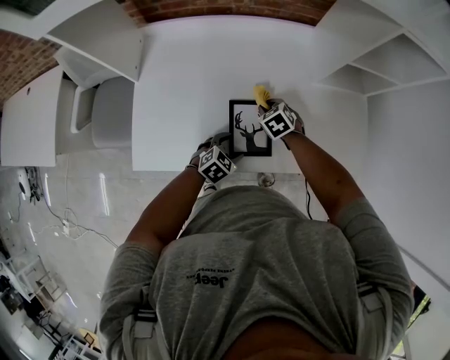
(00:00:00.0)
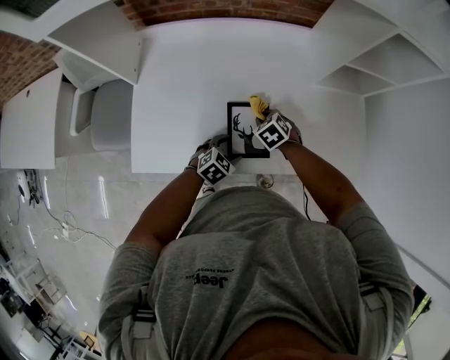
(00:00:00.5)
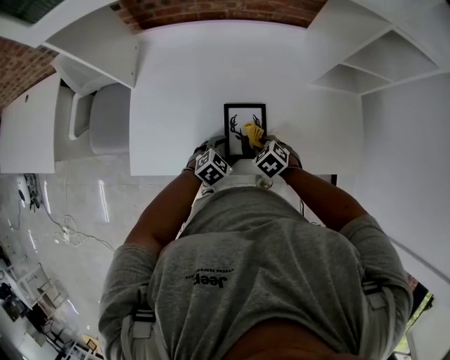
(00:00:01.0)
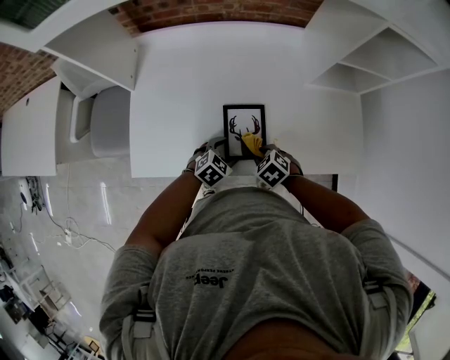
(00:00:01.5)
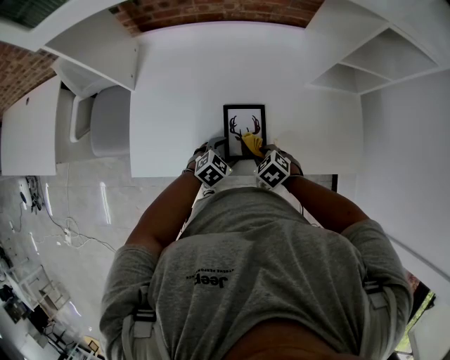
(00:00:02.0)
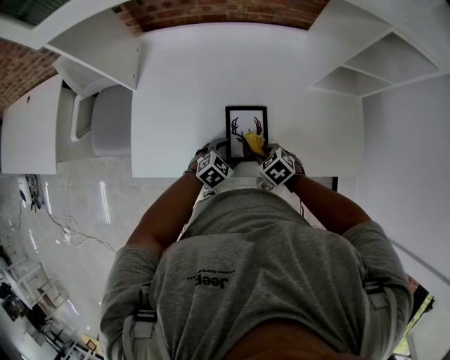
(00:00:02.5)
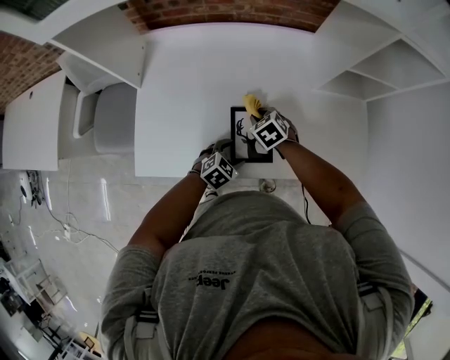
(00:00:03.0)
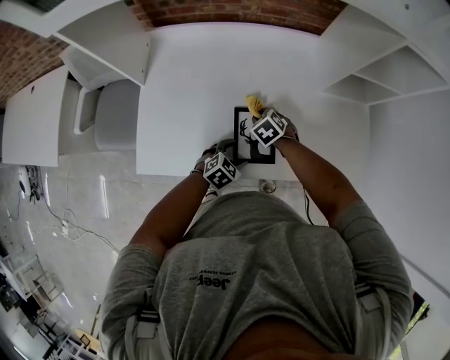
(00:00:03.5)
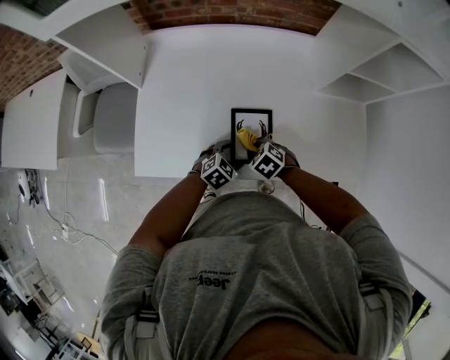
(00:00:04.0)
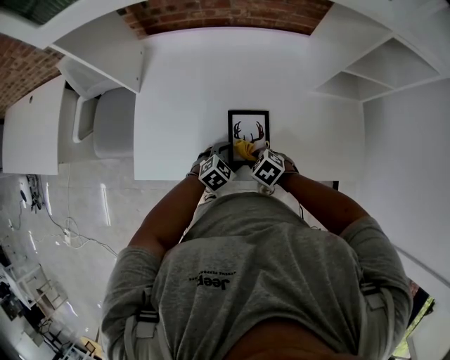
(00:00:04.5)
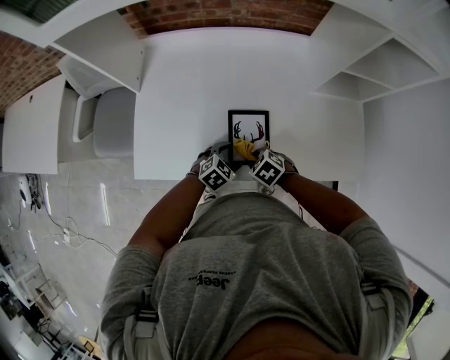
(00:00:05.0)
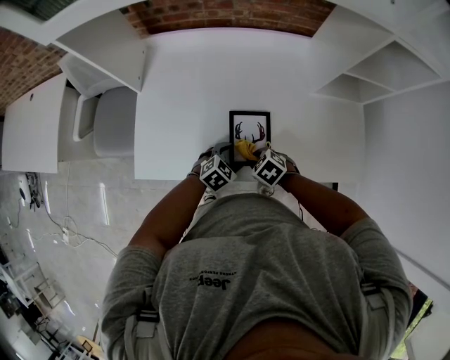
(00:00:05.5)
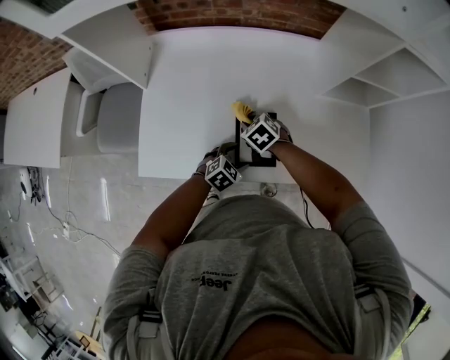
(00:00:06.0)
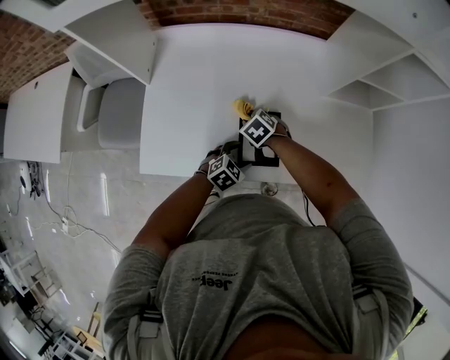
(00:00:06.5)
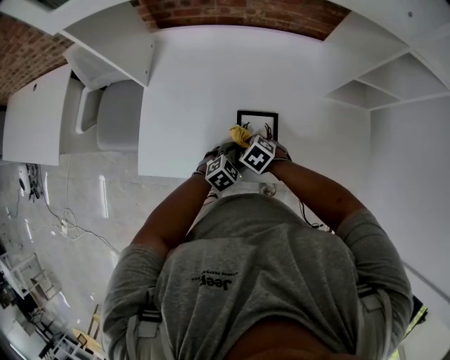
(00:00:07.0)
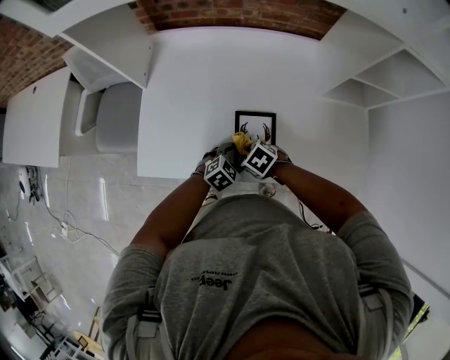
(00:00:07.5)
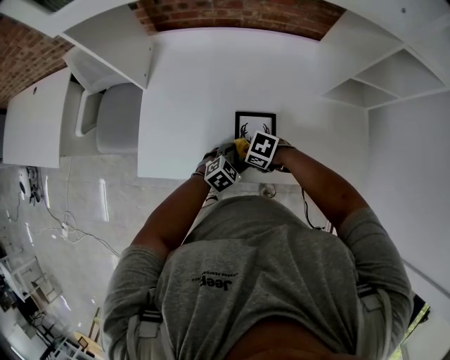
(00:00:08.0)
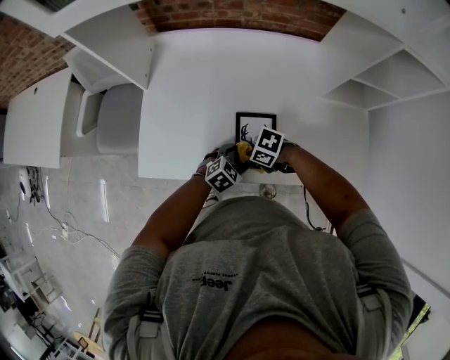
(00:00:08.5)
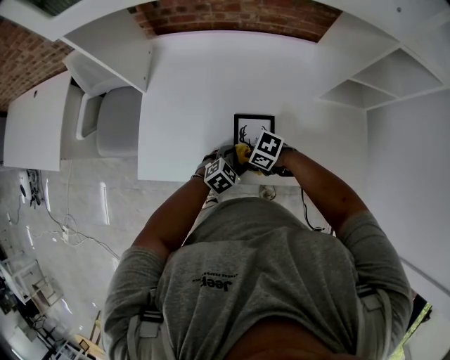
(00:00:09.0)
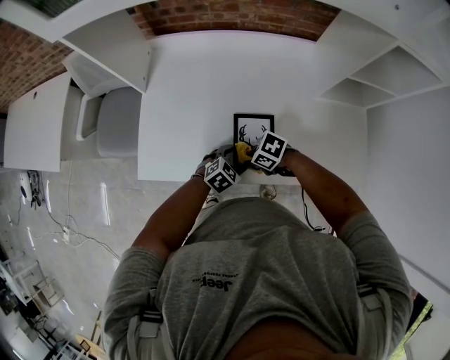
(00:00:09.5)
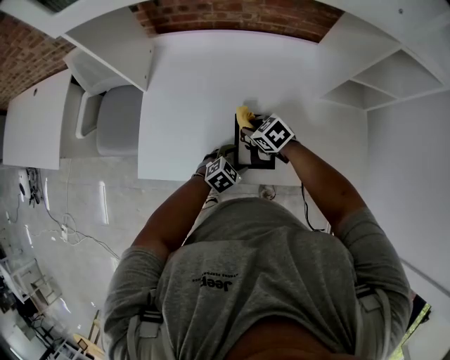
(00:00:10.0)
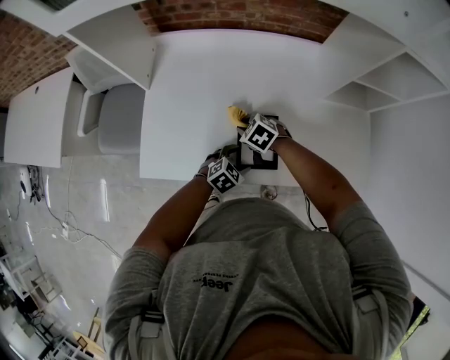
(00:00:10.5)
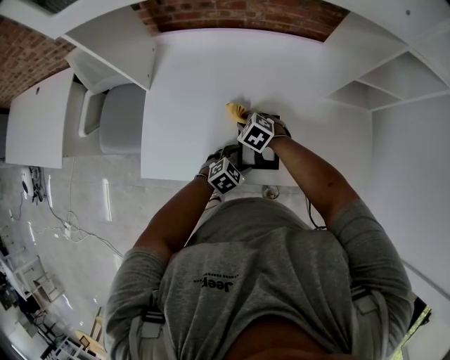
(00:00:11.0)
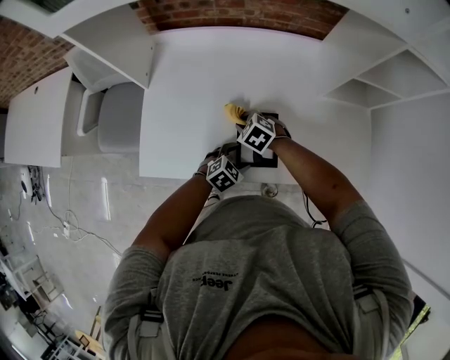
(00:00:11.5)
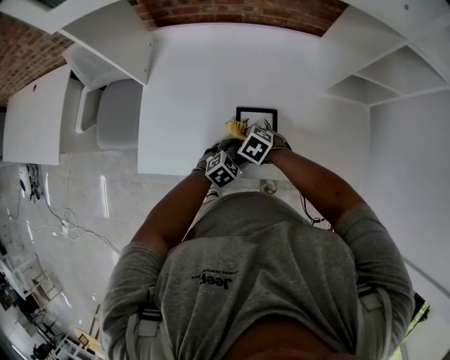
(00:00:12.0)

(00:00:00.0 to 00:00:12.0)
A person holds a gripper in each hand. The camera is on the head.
00:00:00.0 - 00:00:02.0: The right gripper moves backward, roughly 15 cm.
00:00:02.0 - 00:00:04.0: The right gripper travels forward and back again, roughly 15 cm each way.
00:00:04.0 - 00:00:06.0: The right gripper shifts by approximately 10 cm.
00:00:06.0 - 00:00:08.0: The right gripper changes place by about 15 cm, and changes its angle by roughly 40 degrees.
00:00:08.0 - 00:00:10.0: The right gripper ends up about 10 cm from where it was, and swivels roughly 30 degrees.
00:00:10.0 - 00:00:12.0: The right gripper ends up approximately 5 cm from where it was.

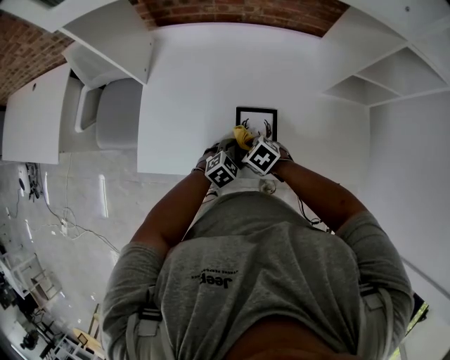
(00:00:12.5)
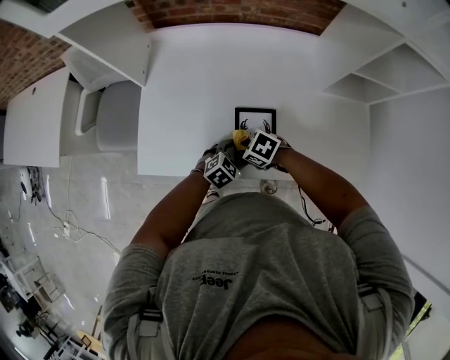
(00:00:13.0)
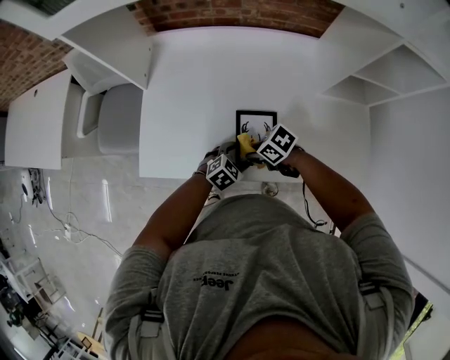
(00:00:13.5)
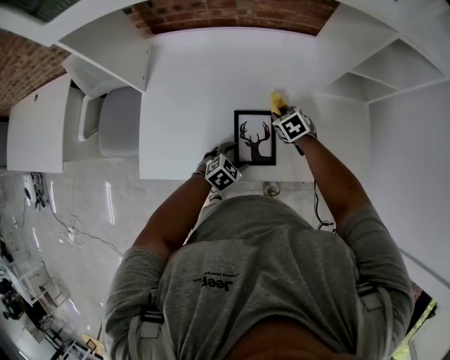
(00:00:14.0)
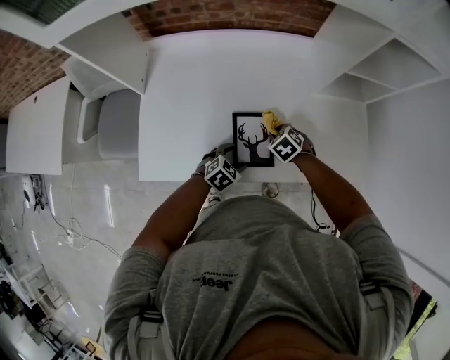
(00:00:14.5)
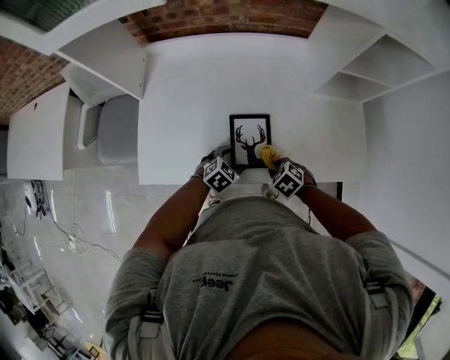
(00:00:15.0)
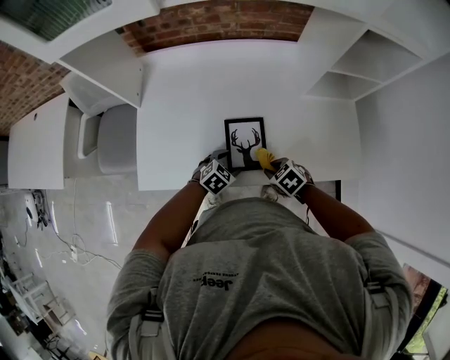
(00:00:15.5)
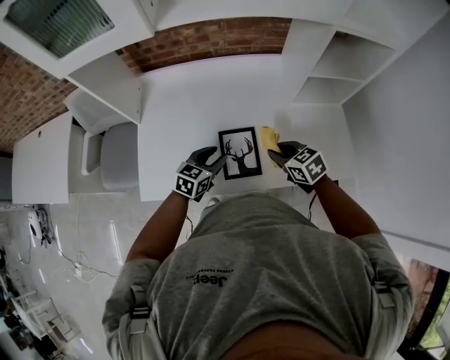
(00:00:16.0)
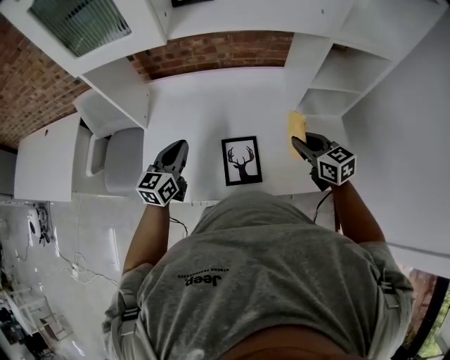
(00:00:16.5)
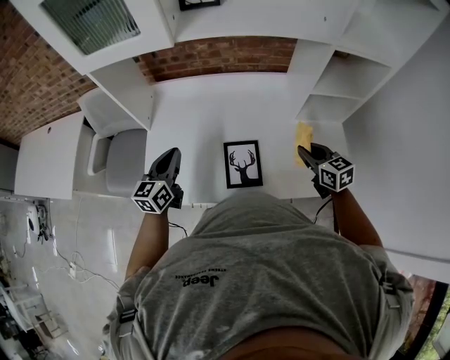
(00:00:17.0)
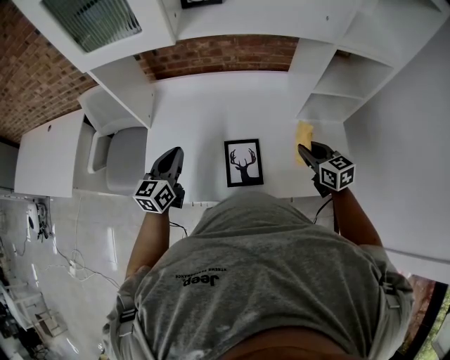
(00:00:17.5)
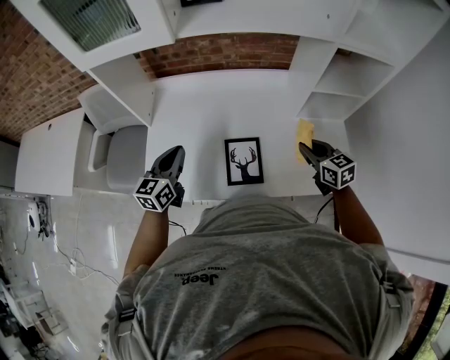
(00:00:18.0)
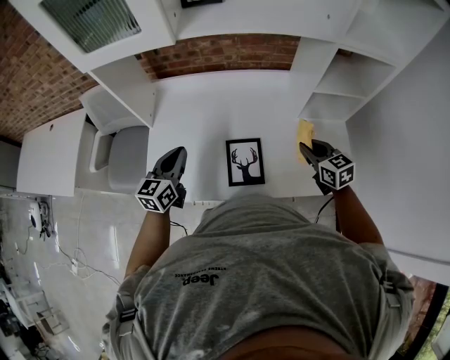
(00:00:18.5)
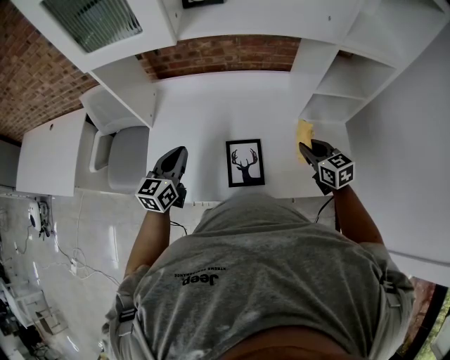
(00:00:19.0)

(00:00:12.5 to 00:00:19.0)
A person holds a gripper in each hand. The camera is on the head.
00:00:12.5 - 00:00:14.5: The right gripper moves about 15 cm.
00:00:14.5 - 00:00:17.0: The left gripper goes some 30 cm upward and to the left, tips its fingers upward by approximately 40 degrees, and closes its fingers. Meanwhile the right gripper heads upward and to the right, covering some 25 cm, and tilts its fingers about 40 degrees upward.
00:00:17.0 - 00:00:19.0: There are only small adjustments of the grippers.

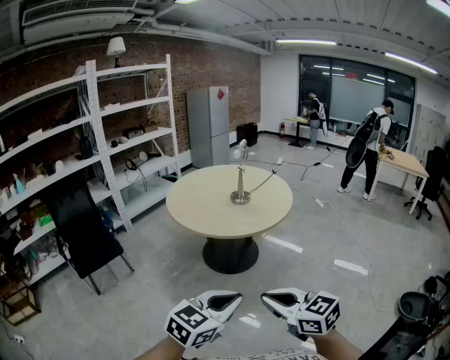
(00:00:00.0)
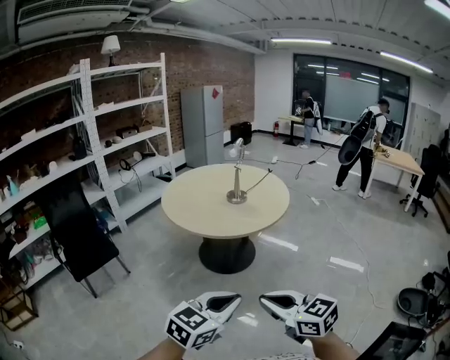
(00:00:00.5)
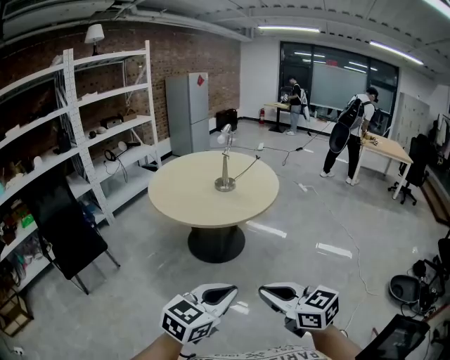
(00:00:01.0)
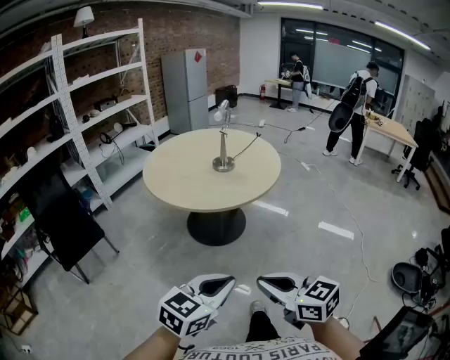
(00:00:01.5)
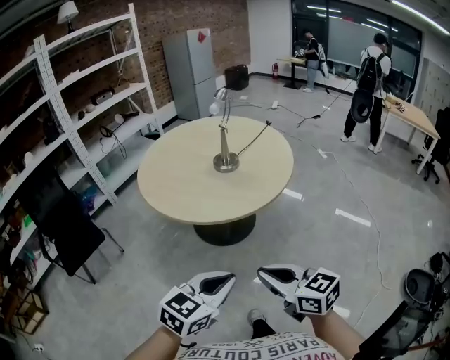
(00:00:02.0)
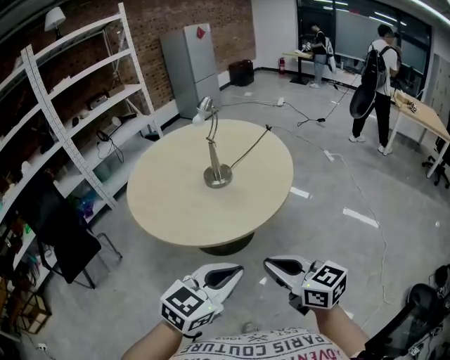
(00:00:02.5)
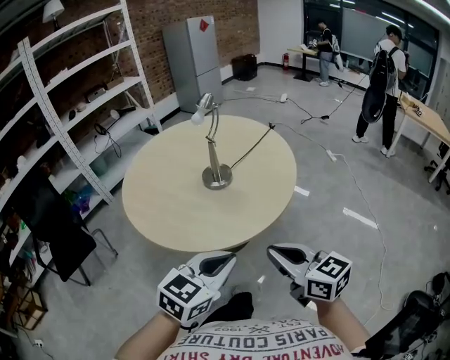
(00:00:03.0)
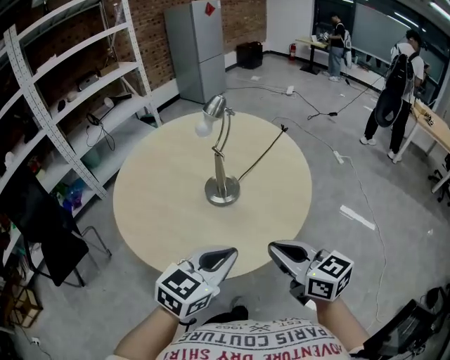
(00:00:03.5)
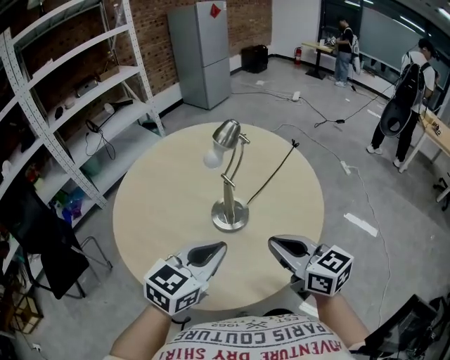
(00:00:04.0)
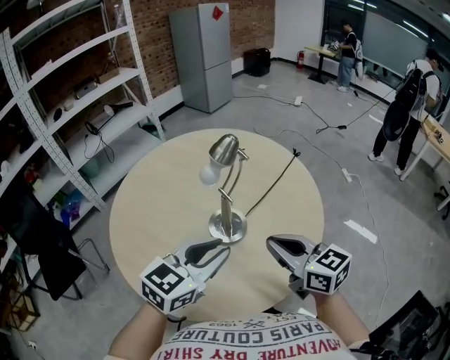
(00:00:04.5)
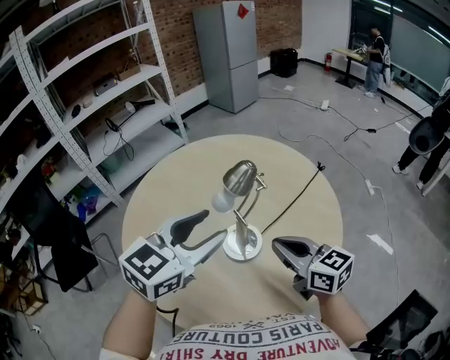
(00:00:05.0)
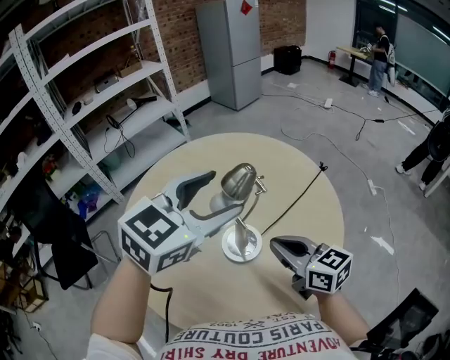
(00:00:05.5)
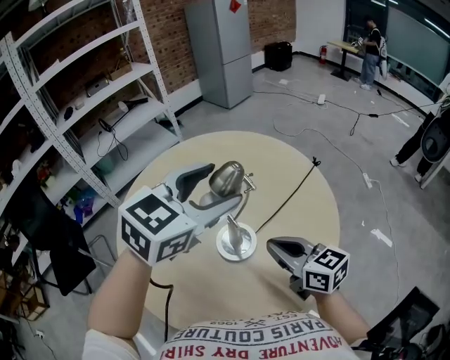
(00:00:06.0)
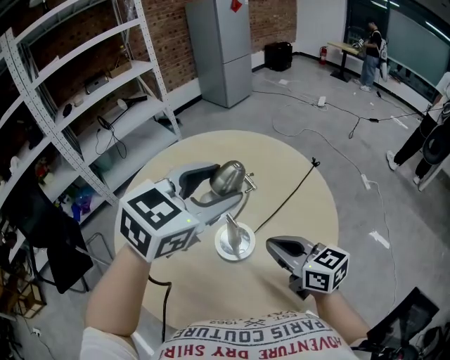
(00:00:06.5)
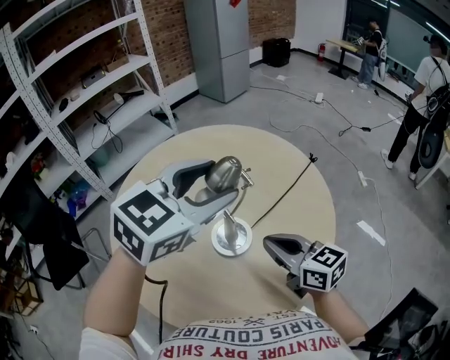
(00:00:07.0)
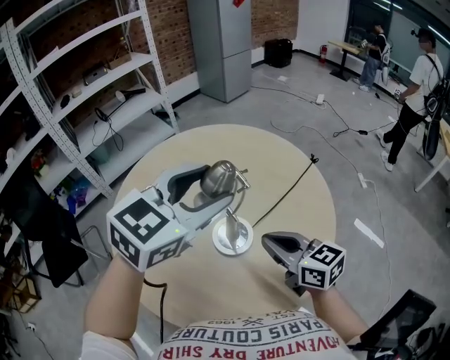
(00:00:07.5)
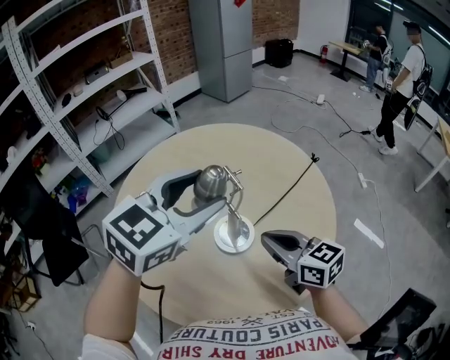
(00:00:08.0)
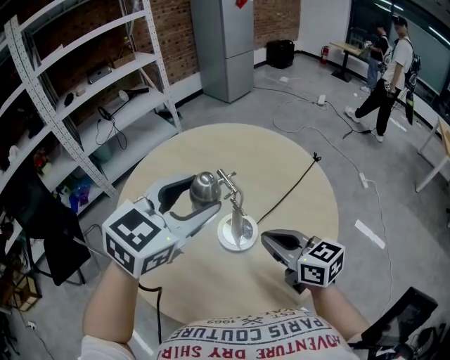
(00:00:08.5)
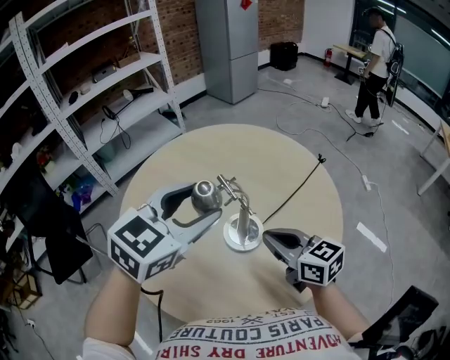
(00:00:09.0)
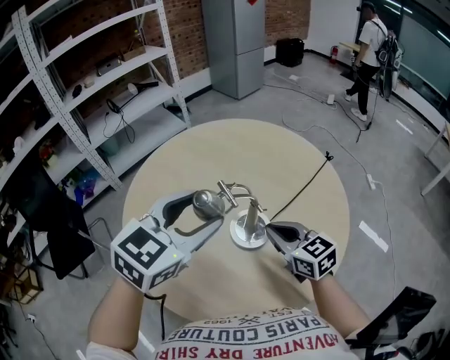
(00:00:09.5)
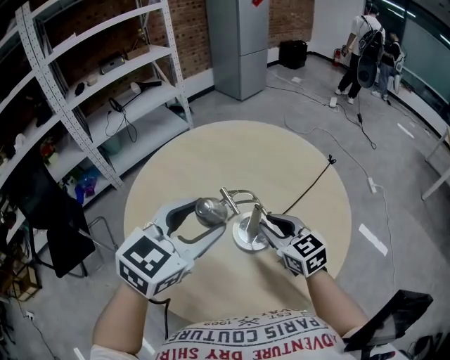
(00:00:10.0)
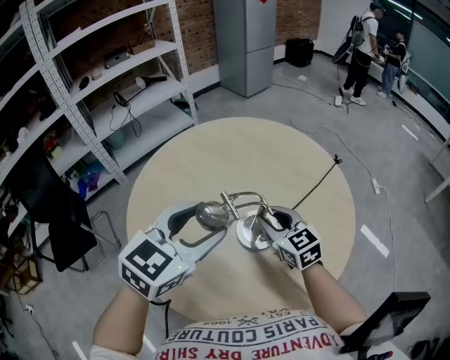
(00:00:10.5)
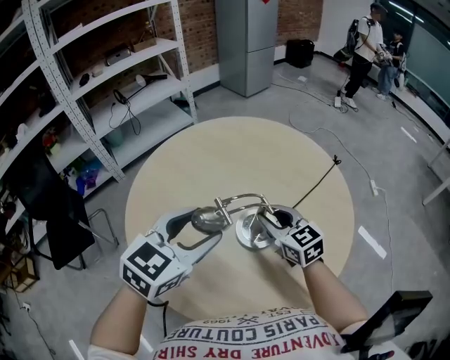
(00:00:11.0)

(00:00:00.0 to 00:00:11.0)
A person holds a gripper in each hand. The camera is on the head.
00:00:00.0 - 00:00:02.0: Both grippers travel together forward, approximately 20 cm.
00:00:02.0 - 00:00:03.5: The two grippers go some 35 cm forward.
00:00:03.5 - 00:00:05.5: The left gripper moves forward and upward, roughly 35 cm, and opens its fingers, while the right gripper travels forward by about 25 cm.
00:00:05.5 - 00:00:07.5: The grippers stay close to where they were, moving slightly.
00:00:07.5 - 00:00:09.0: The left gripper travels to the left by some 5 cm.
00:00:09.0 - 00:00:11.0: The left gripper travels downward and to the left by some 10 cm, while the right gripper moves forward and downward, about 10 cm, and opens its fingers.
